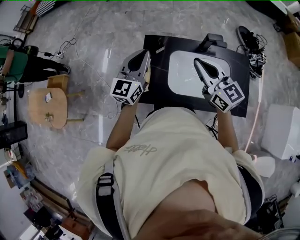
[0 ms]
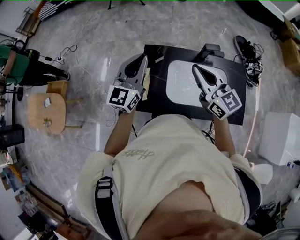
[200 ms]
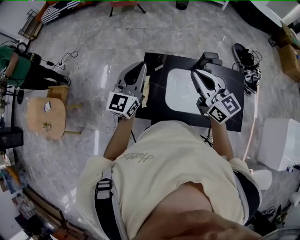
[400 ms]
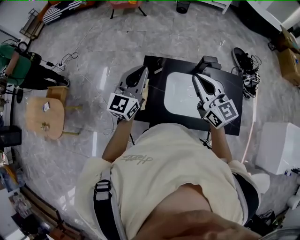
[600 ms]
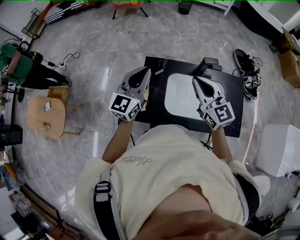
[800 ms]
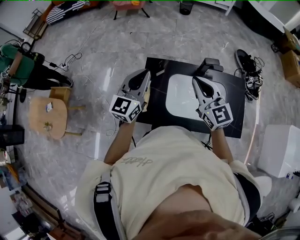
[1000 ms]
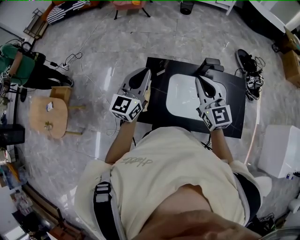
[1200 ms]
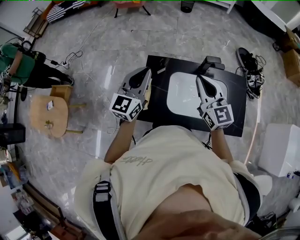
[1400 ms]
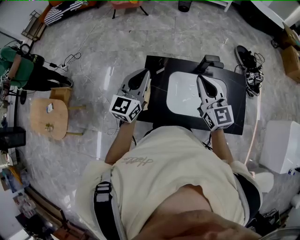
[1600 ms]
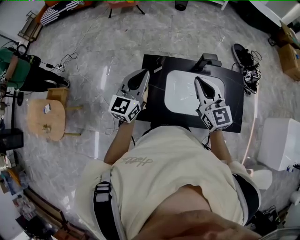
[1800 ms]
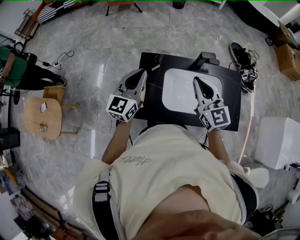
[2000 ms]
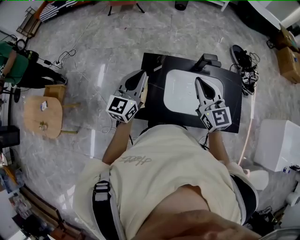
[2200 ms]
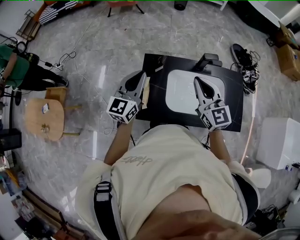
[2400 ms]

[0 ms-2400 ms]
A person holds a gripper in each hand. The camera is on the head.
1200 ms to 2400 ms: The left gripper moves about 5 cm.
